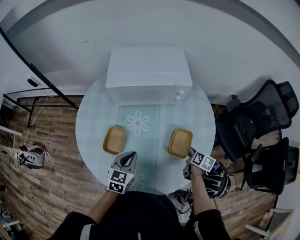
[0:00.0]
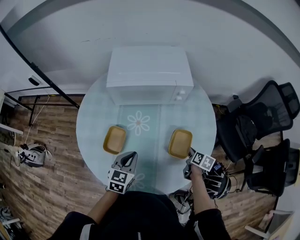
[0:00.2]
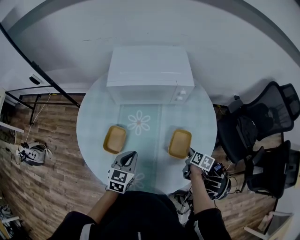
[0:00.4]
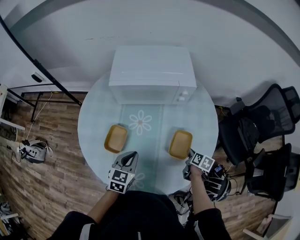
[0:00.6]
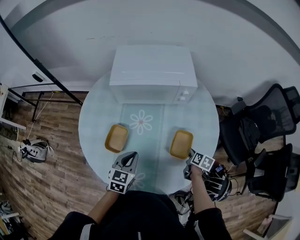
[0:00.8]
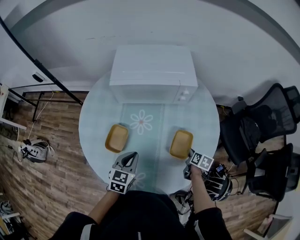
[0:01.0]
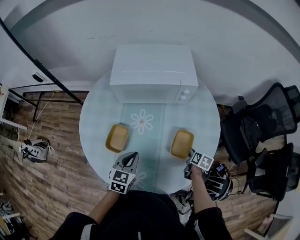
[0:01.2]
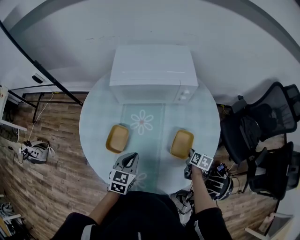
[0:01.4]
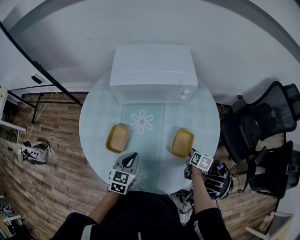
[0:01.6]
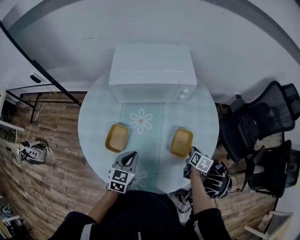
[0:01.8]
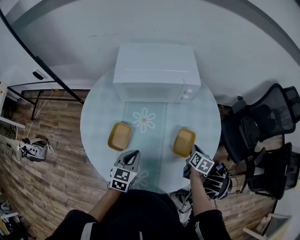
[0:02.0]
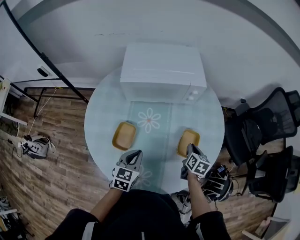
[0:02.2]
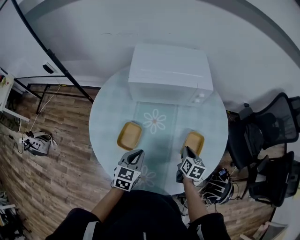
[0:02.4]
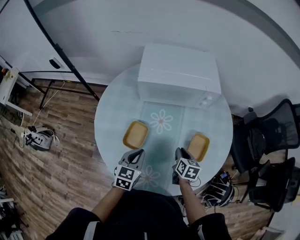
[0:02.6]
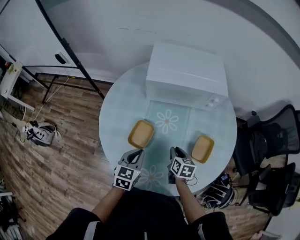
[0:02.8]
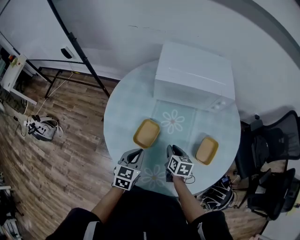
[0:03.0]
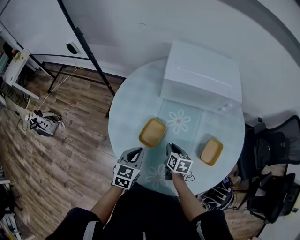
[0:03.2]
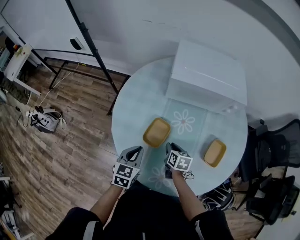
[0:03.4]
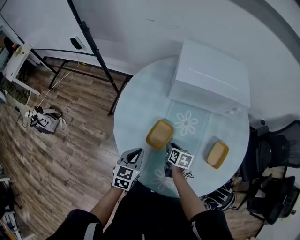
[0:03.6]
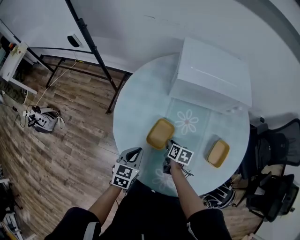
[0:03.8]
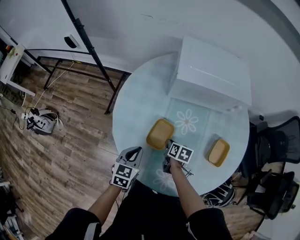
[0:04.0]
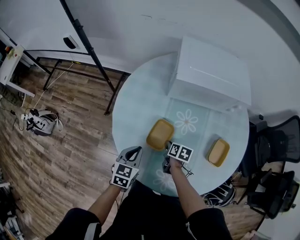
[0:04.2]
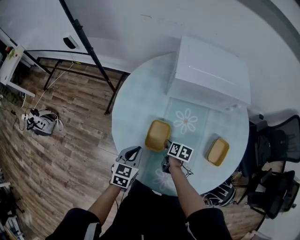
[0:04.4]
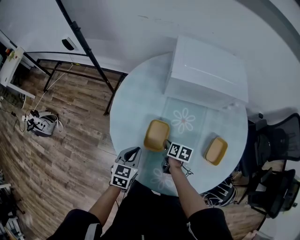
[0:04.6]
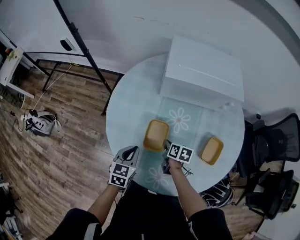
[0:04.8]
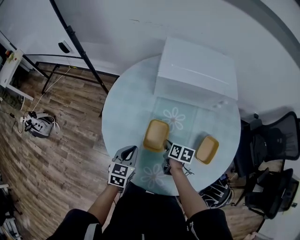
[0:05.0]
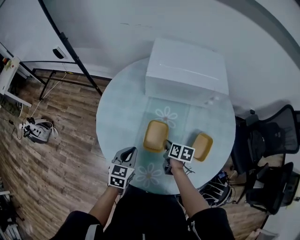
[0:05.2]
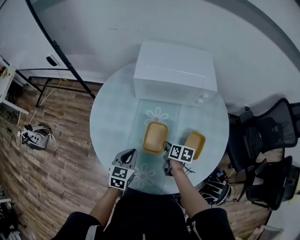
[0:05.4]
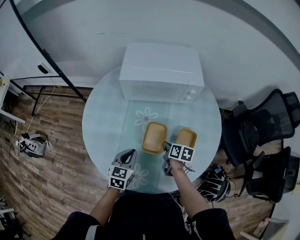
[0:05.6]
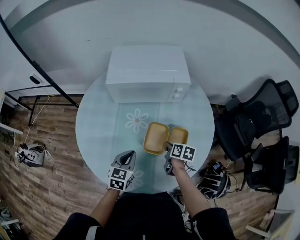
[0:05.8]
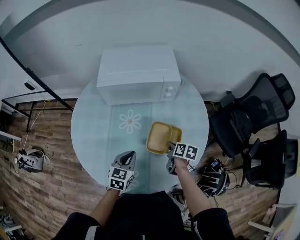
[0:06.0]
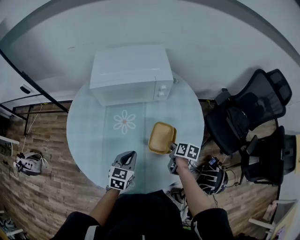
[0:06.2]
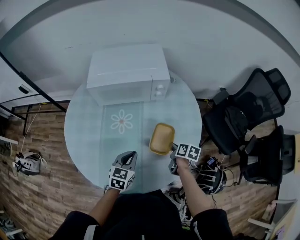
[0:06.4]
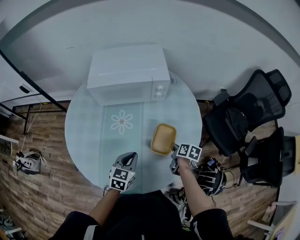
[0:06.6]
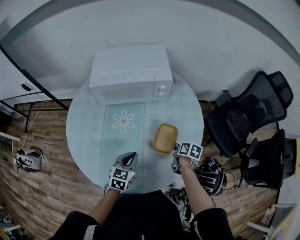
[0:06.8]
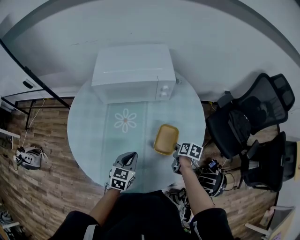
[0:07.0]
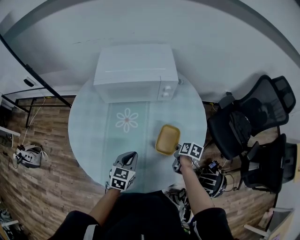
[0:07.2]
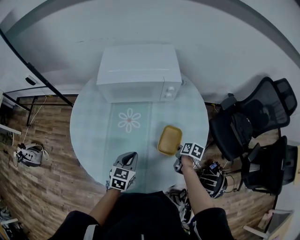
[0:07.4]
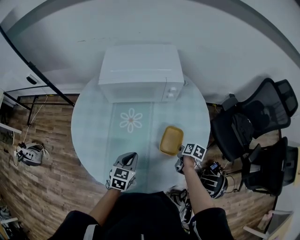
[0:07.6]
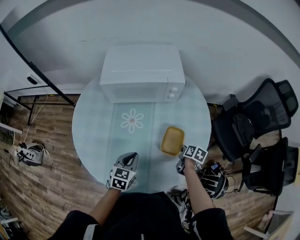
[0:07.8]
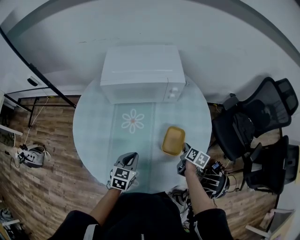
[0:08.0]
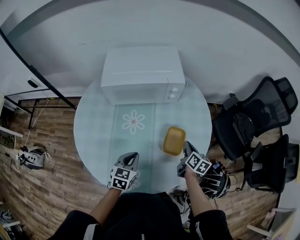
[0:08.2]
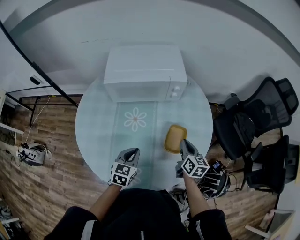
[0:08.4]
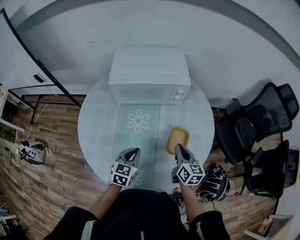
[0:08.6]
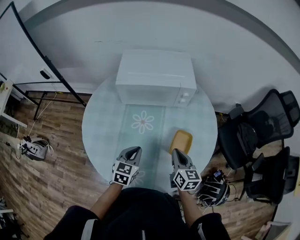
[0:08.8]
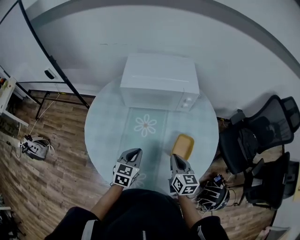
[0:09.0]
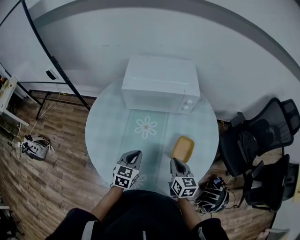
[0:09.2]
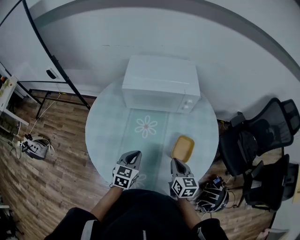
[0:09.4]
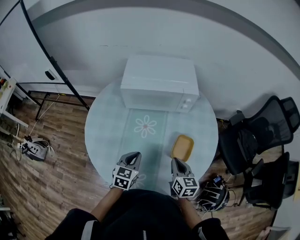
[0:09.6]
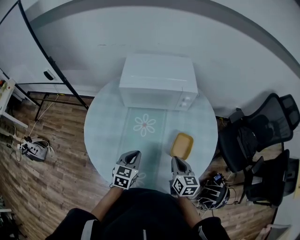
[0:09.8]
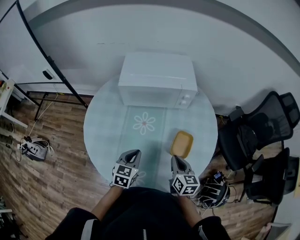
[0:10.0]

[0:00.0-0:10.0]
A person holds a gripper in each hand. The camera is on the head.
0.0 to 1.4 s: The right gripper shifts approximately 5 cm downward.
1.4 to 2.8 s: The left gripper travels to the left by roughly 10 cm. Meanwhile the right gripper travels to the left by roughly 25 cm, and turns by approximately 20 degrees.
2.8 to 4.2 s: The right gripper is displaced to the left and downward by approximately 15 cm, and rotates roughly 20 degrees. The left gripper goes approximately 10 cm to the left.
4.2 to 5.8 s: Both grippers travel together to the right, some 25 cm.
5.8 to 7.2 s: The left gripper travels to the right by approximately 5 cm; the right gripper goes approximately 15 cm to the right.
7.2 to 8.6 s: The right gripper travels upward and to the left by some 15 cm, and tilts its fingers approximately 30 degrees upward. The left gripper ends up approximately 5 cm from where it was.
8.6 to 10.0 s: The right gripper shifts by some 5 cm.

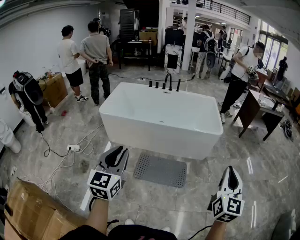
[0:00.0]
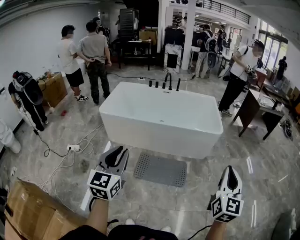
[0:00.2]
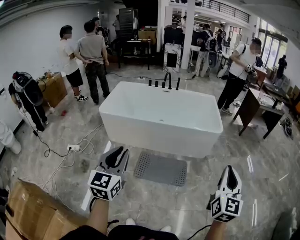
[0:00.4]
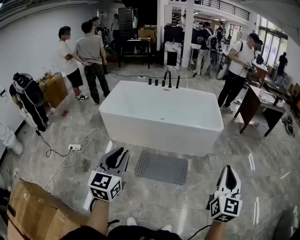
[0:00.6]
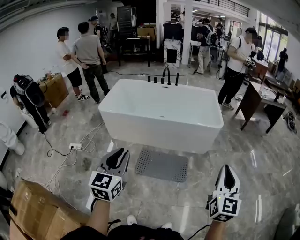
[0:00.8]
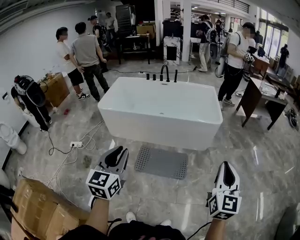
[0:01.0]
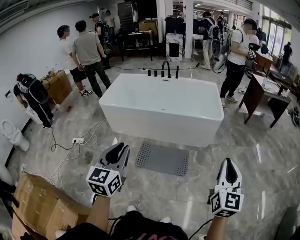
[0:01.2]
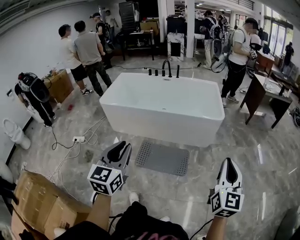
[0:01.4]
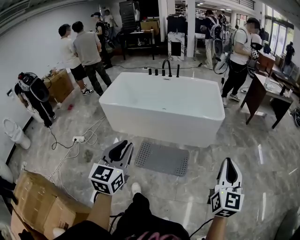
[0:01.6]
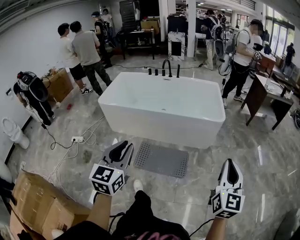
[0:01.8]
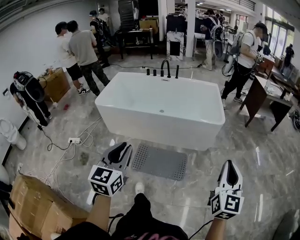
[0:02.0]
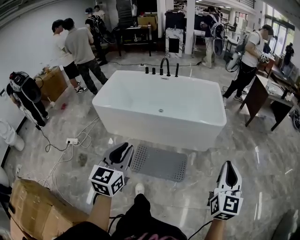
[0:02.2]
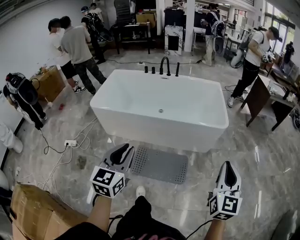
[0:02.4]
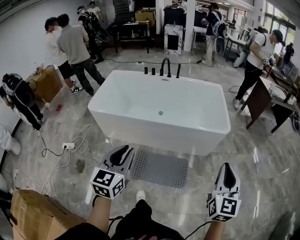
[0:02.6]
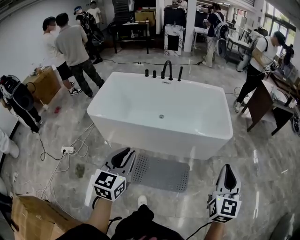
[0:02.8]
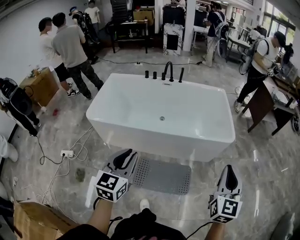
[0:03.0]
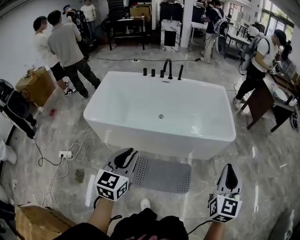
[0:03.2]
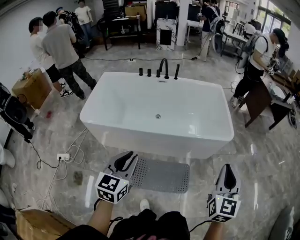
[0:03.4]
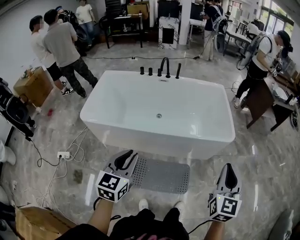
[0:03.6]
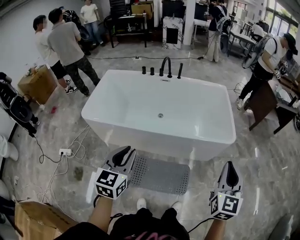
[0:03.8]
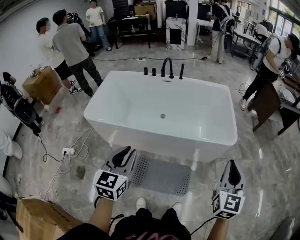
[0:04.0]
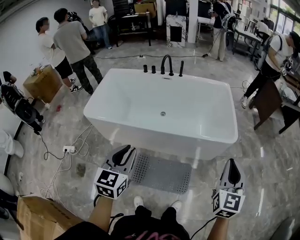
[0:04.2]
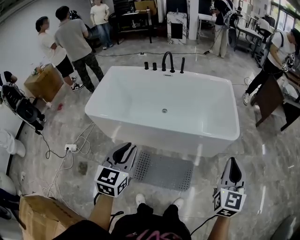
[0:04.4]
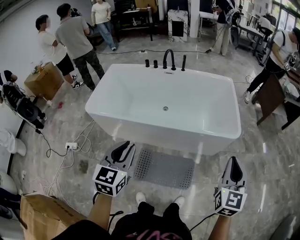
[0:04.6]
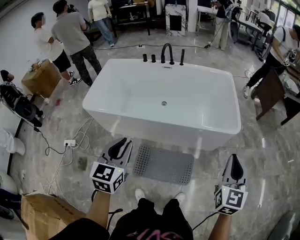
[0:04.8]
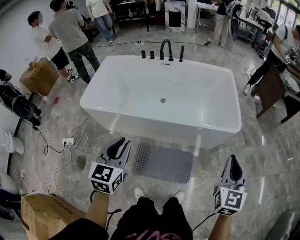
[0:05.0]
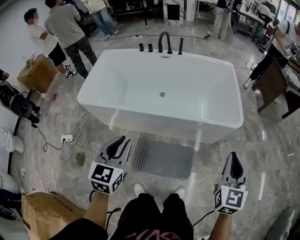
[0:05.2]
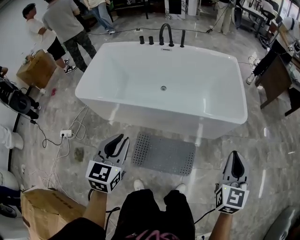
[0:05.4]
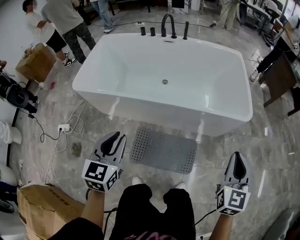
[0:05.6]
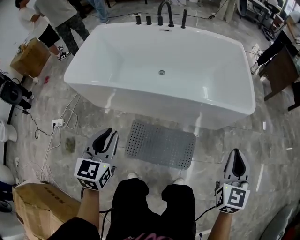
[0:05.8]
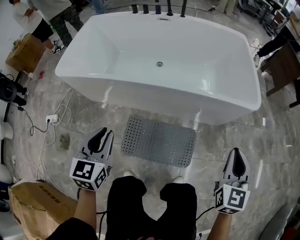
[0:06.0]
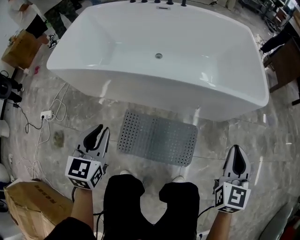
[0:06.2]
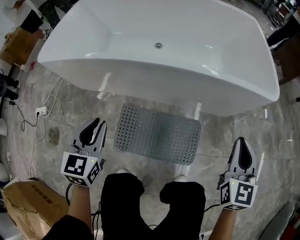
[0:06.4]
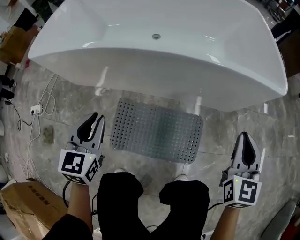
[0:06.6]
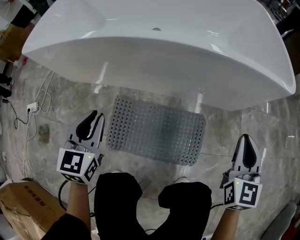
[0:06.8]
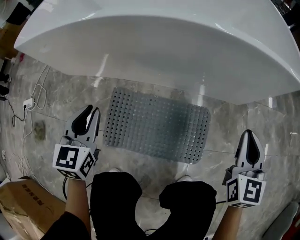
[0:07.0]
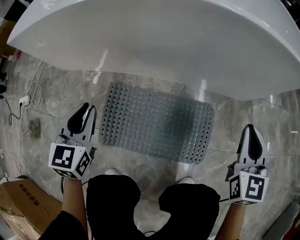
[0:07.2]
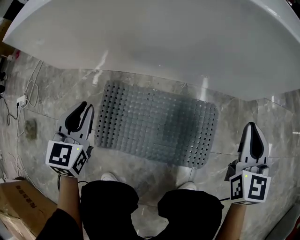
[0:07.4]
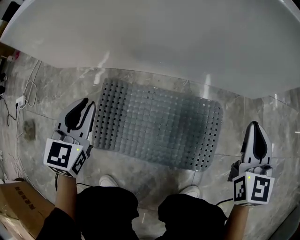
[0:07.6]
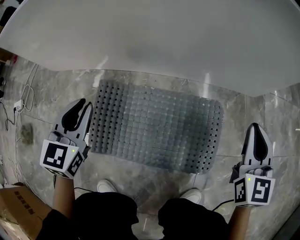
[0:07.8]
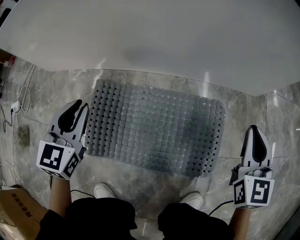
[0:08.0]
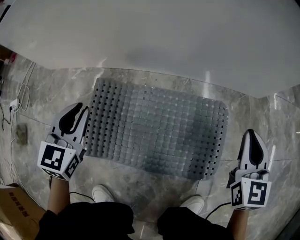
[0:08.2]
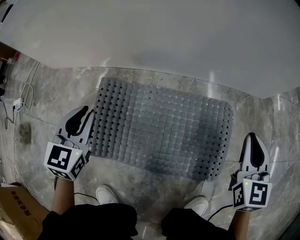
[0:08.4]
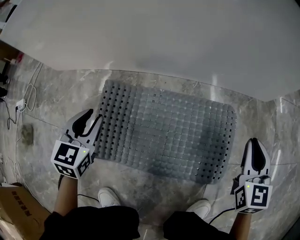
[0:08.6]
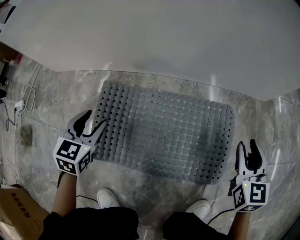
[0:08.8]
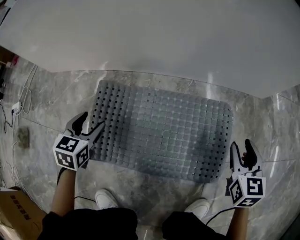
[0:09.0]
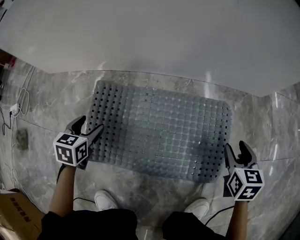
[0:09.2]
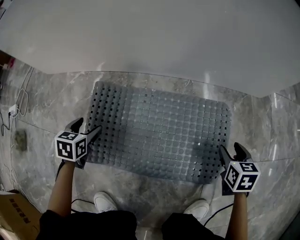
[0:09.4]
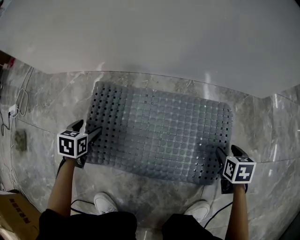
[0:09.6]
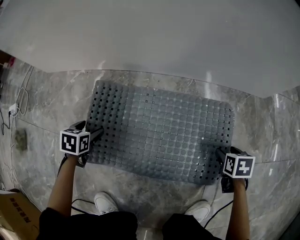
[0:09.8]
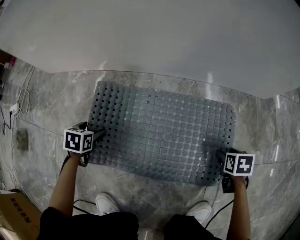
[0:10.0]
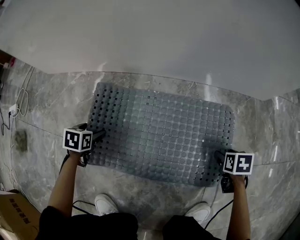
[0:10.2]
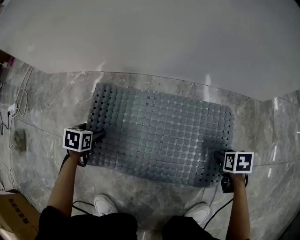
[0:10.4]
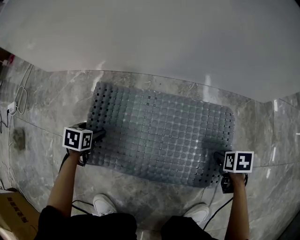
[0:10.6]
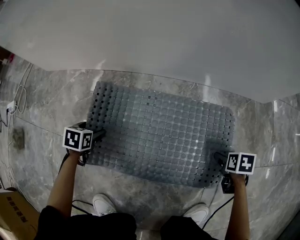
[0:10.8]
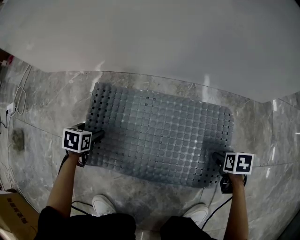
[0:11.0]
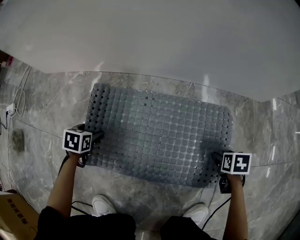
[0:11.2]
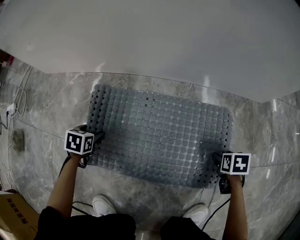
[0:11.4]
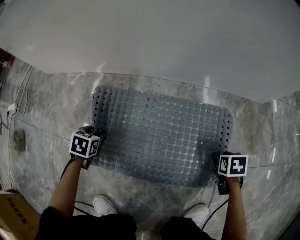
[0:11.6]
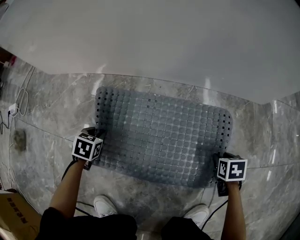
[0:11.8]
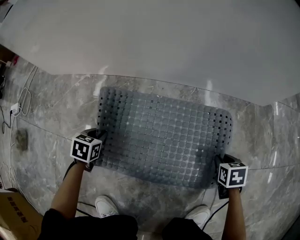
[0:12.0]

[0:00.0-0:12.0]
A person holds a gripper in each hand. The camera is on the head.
0.0 to 1.6 s: The two grippers go some 10 cm to the right.
1.6 to 3.0 s: Both grippers travel together forward and to the left, some 35 cm.
3.0 to 4.4 s: The two grippers go approximately 10 cm forward and to the right.
4.4 to 6.0 s: The two grippers go about 25 cm downward.
6.0 to 7.6 s: Both grippers travel together downward, approximately 40 cm.
7.6 to 9.0 s: Both grippers travel together downward, roughly 20 cm. The left gripper turns by roughly 20 degrees, and opens up, while the right gripper opens.
9.0 to 10.4 s: Both grippers travel together downward, some 15 cm. The right gripper tilts its fingers some 40 degrees downward, while the left gripper turns by some 30 degrees.
10.4 to 12.0 s: The left gripper closes. Meanwhile the right gripper closes.

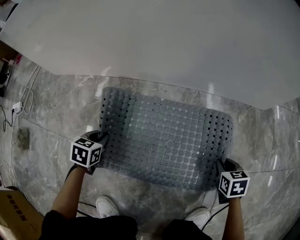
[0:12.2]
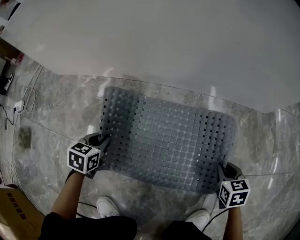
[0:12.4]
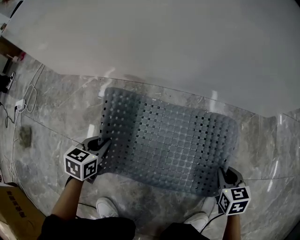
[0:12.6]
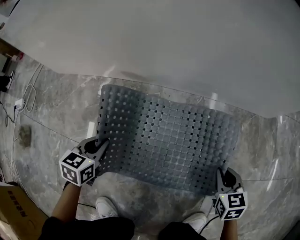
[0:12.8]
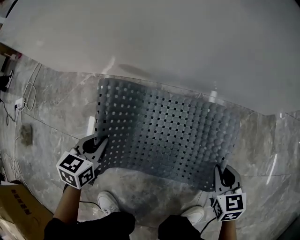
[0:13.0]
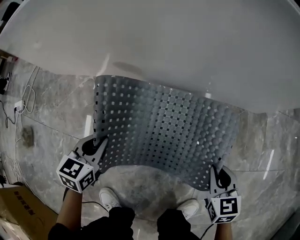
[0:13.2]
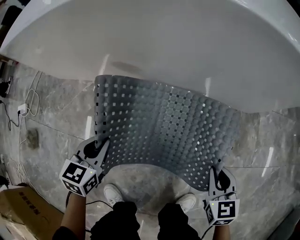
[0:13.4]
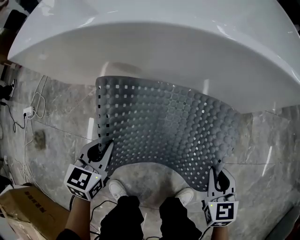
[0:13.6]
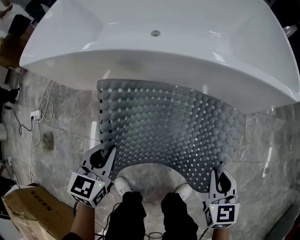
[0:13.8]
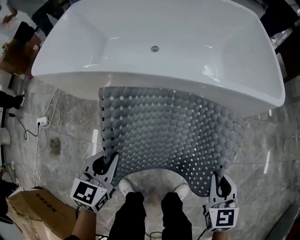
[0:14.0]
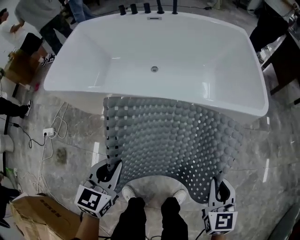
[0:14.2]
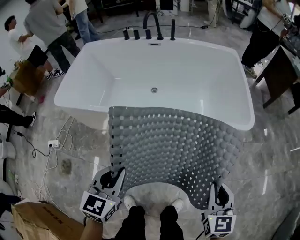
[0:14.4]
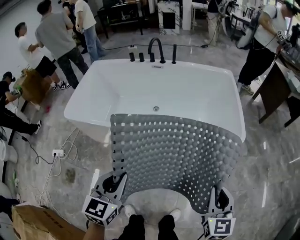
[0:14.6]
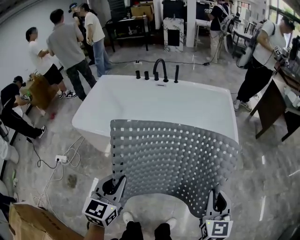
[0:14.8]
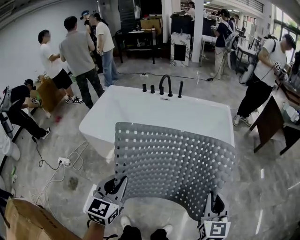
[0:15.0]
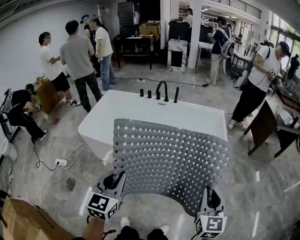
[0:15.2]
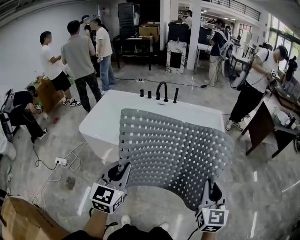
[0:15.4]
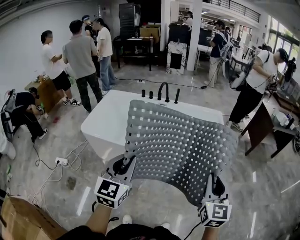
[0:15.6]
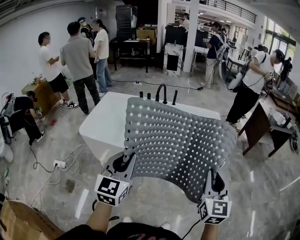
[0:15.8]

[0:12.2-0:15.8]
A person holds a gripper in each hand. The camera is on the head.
12.2 to 14.0 s: Both grippers move upward, about 50 cm. The left gripper rotates approximately 30 degrees; the right gripper changes its angle by approximately 30 degrees.
14.0 to 15.8 s: Both grippers move upward, some 25 cm. The right gripper tilts its fingers about 30 degrees upward. The left gripper swivels some 30 degrees.
